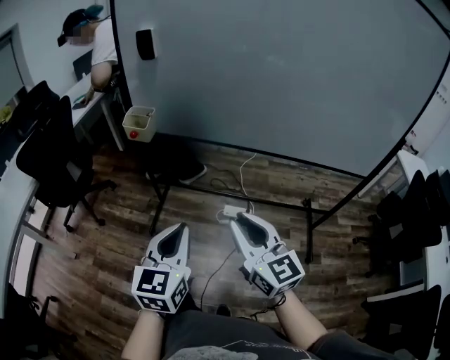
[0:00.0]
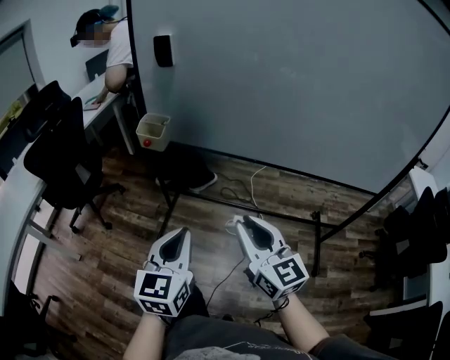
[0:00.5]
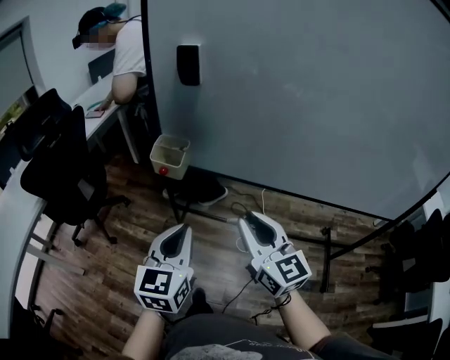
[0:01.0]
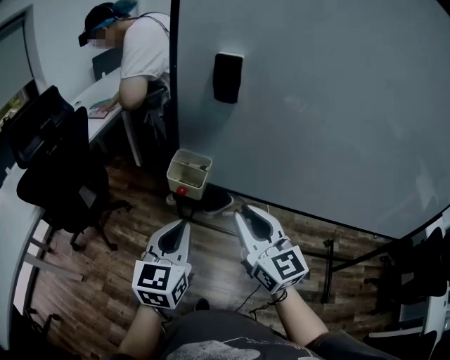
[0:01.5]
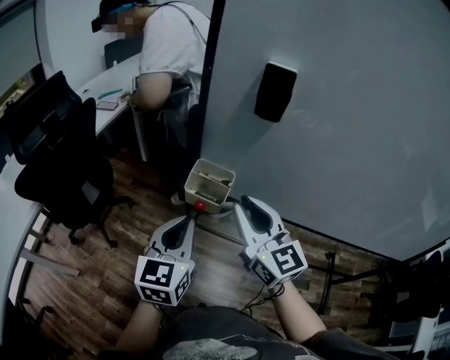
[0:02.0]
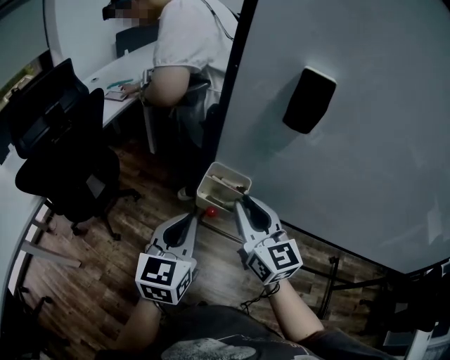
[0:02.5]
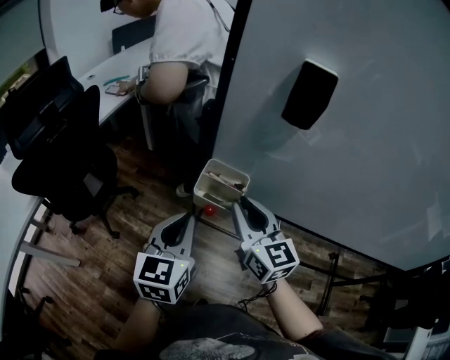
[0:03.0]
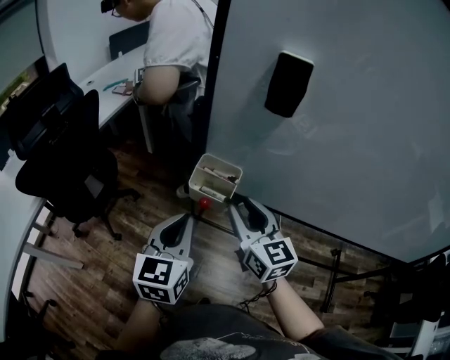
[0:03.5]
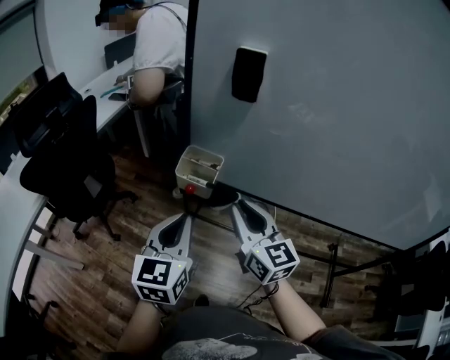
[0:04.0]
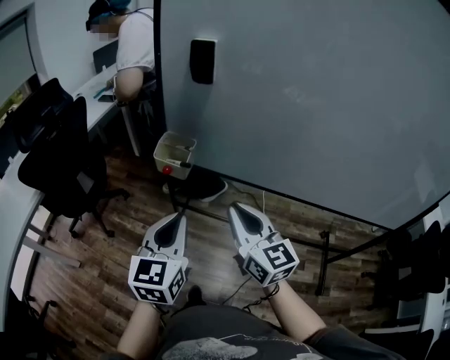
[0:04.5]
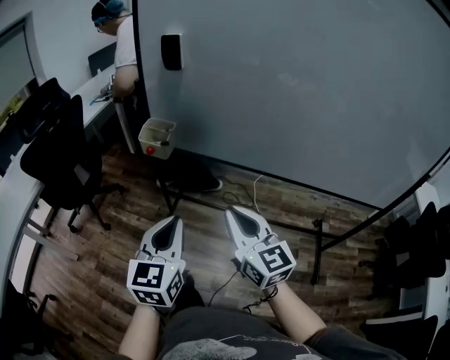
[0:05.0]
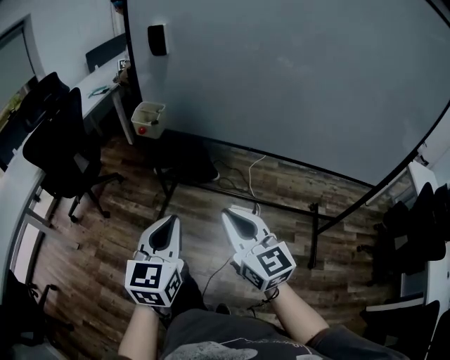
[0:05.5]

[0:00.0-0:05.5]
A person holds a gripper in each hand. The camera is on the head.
0:00.0 to 0:02.0: Both grippers move forward and to the left, approximately 40 cm.
0:02.0 to 0:03.5: The right gripper is displaced downward by some 5 cm.
0:03.5 to 0:05.5: Both grippers move backward and to the right, about 40 cm. The right gripper closes.

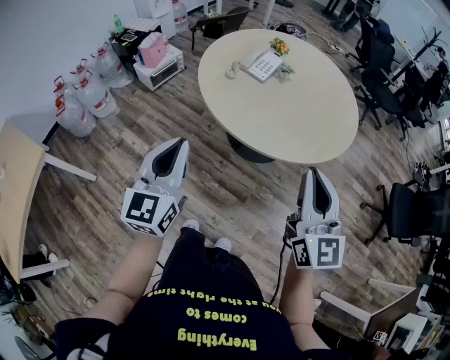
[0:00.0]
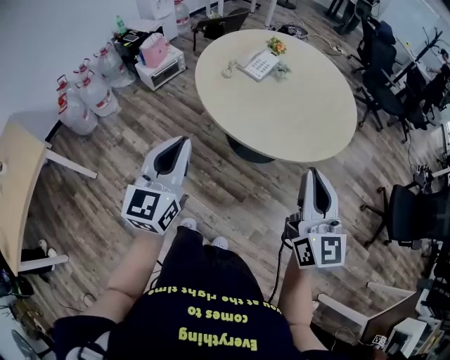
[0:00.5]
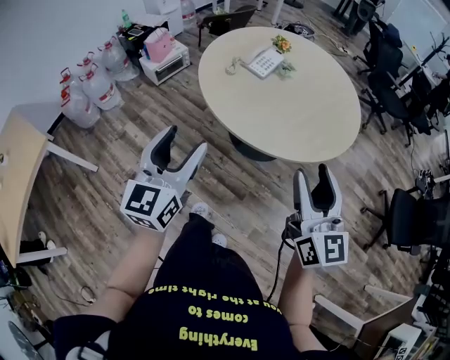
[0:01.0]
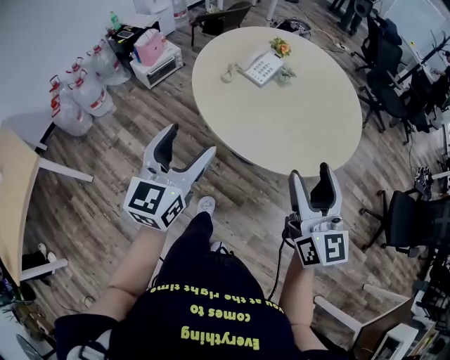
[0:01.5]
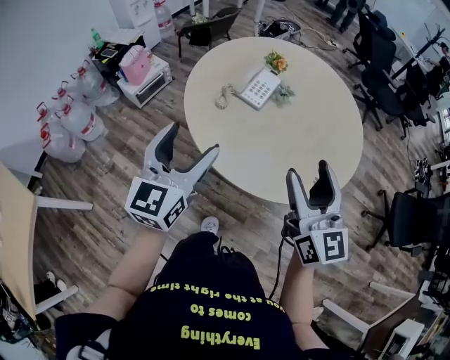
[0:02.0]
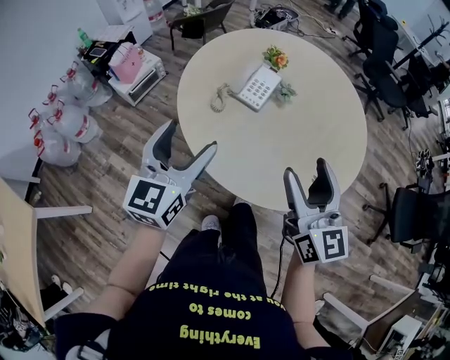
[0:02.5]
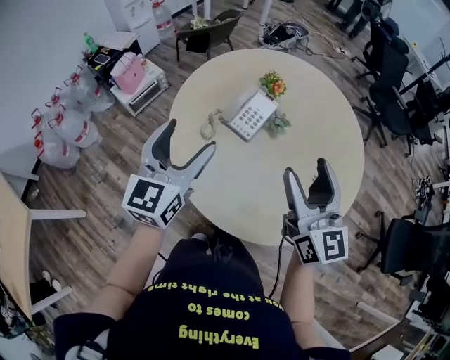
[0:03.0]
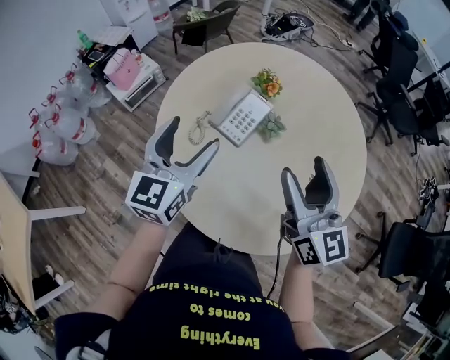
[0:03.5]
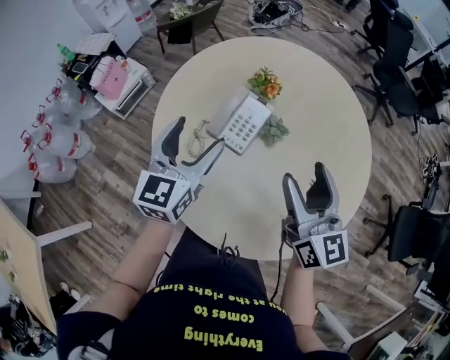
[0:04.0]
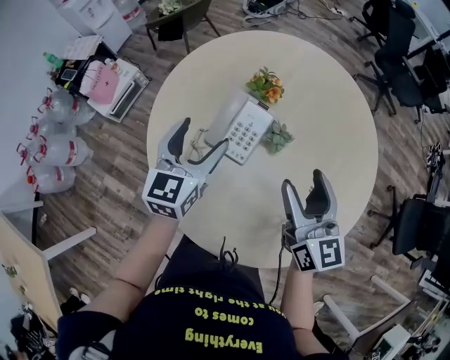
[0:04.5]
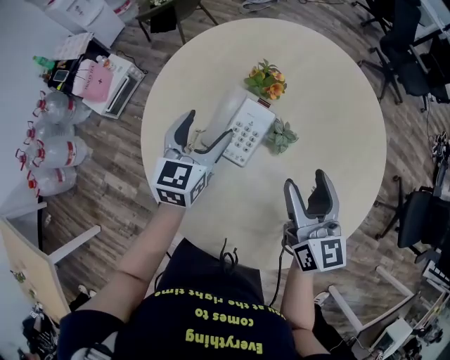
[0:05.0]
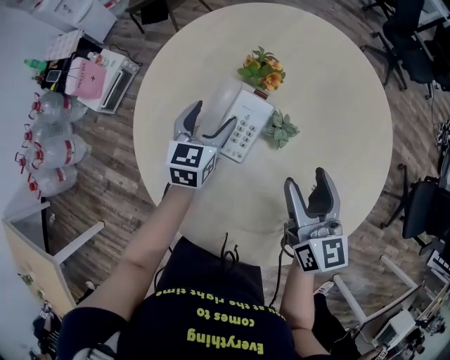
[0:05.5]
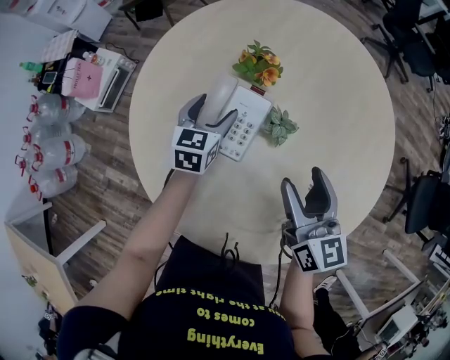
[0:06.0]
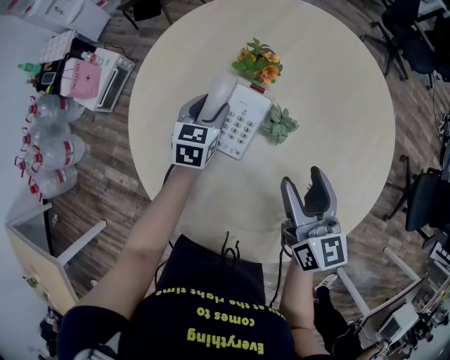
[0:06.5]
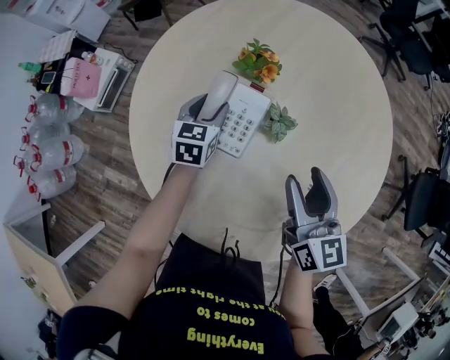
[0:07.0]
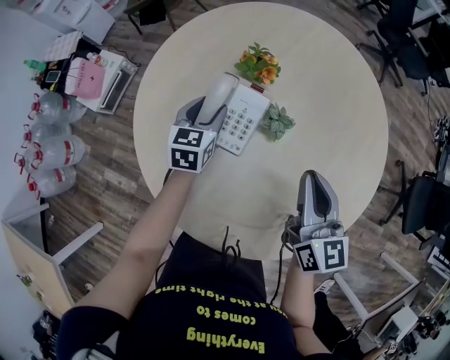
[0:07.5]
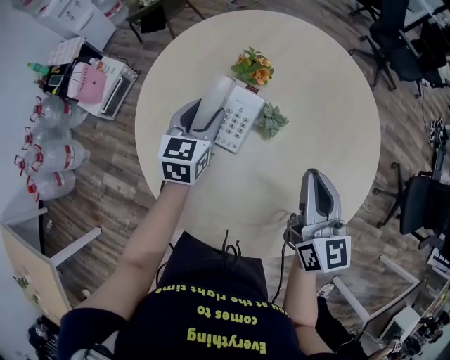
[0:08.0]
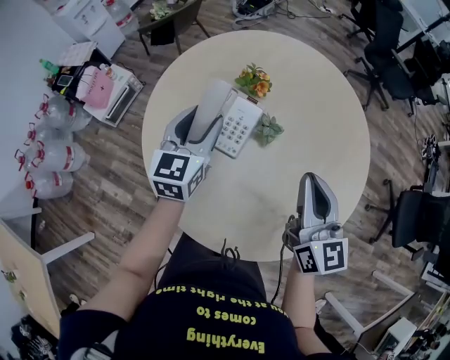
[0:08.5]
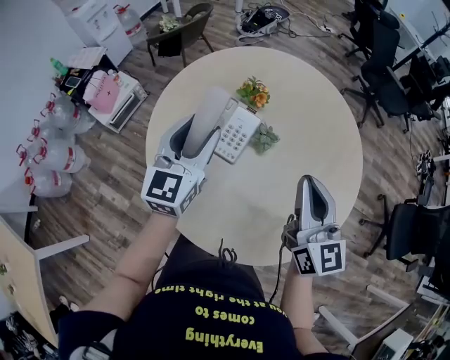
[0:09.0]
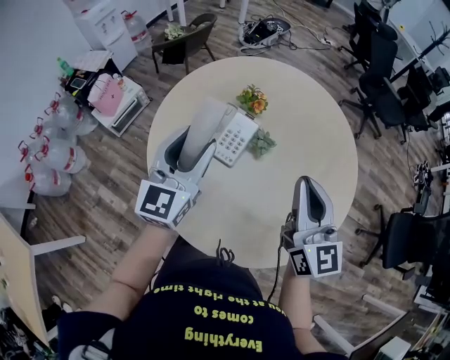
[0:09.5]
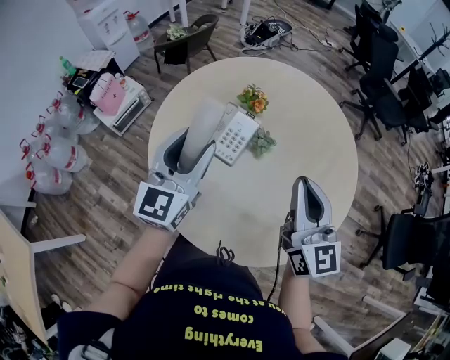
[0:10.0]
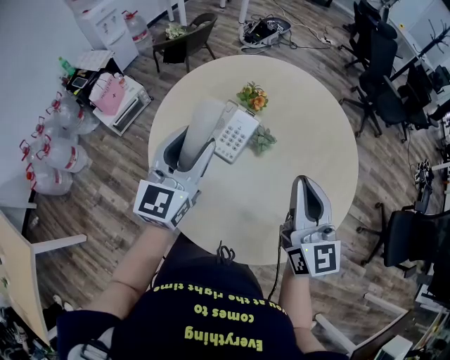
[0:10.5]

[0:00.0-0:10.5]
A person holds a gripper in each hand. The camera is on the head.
0:00.0 to 0:02.0: The grippers both shift forward by roughly 20 cm. The right gripper opens up, while the left gripper opens.
0:02.0 to 0:04.0: The two grippers go roughly 30 cm forward.
0:04.0 to 0:06.5: The right gripper goes about 15 cm downward and forward. The left gripper heads downward and forward, covering some 30 cm, rotates some 30 degrees, and closes.
0:06.5 to 0:08.5: The right gripper moves upward and backward, some 15 cm, and closes. The left gripper is displaced upward and backward by roughly 20 cm, and rotates about 20 degrees.
0:08.5 to 0:10.5: The right gripper moves upward, roughly 5 cm. Meanwhile the left gripper travels backward and upward by some 15 cm.

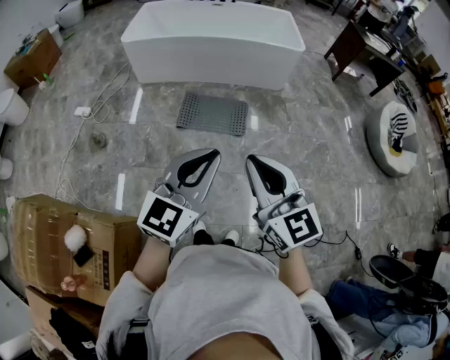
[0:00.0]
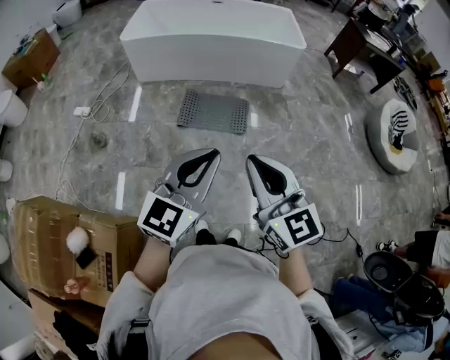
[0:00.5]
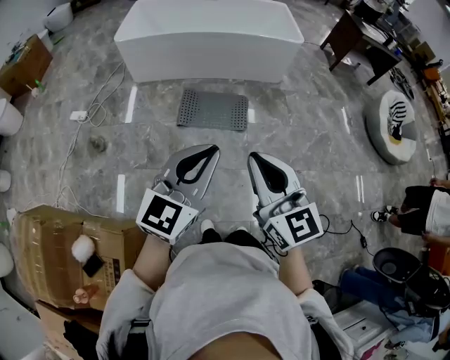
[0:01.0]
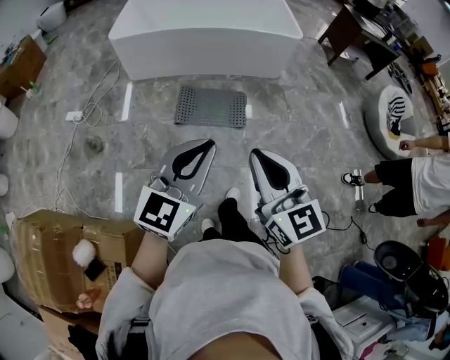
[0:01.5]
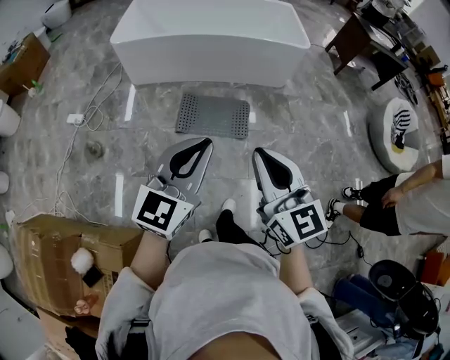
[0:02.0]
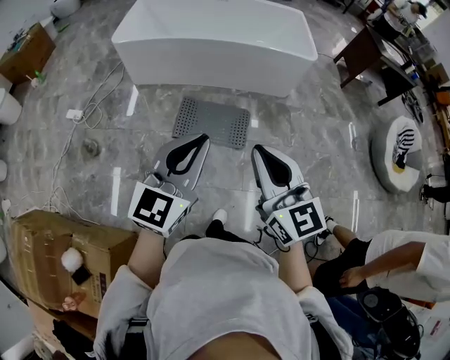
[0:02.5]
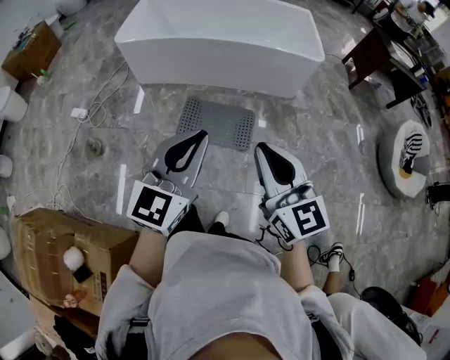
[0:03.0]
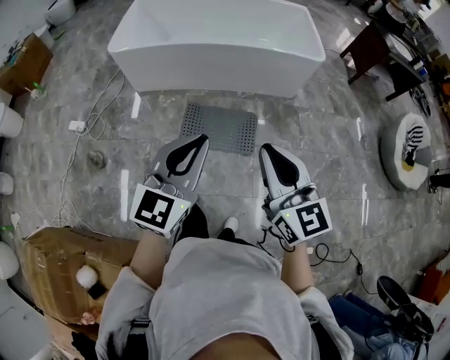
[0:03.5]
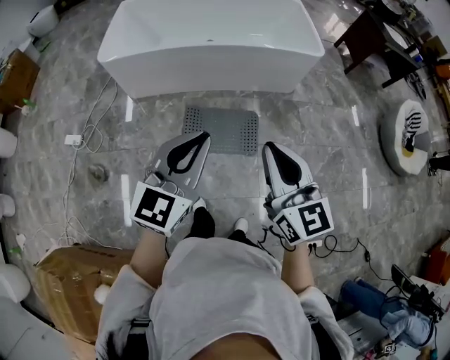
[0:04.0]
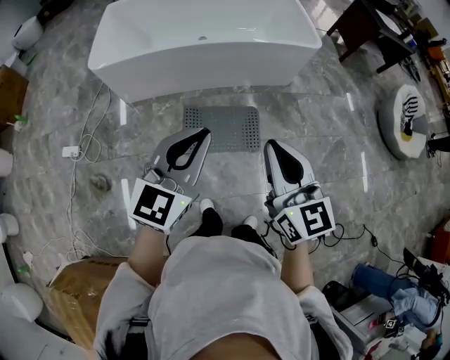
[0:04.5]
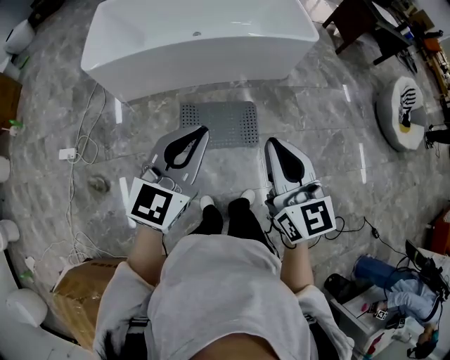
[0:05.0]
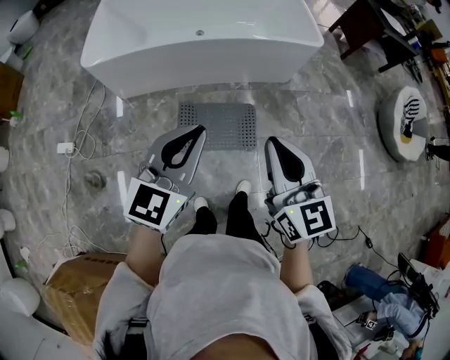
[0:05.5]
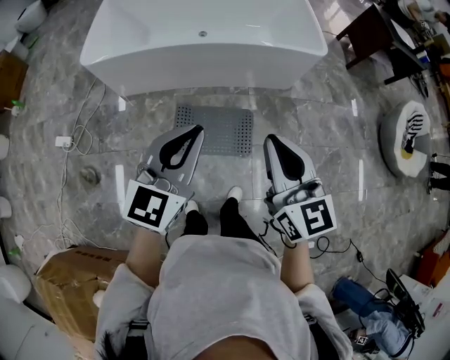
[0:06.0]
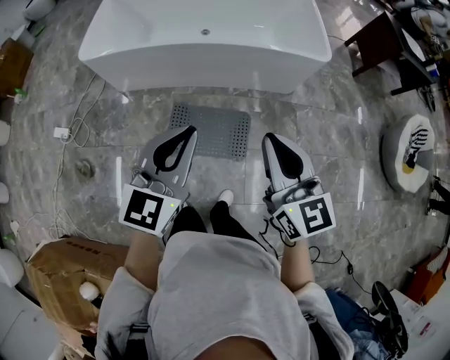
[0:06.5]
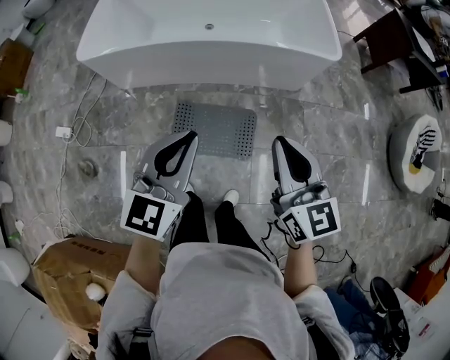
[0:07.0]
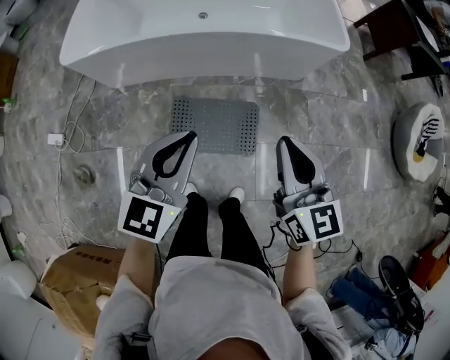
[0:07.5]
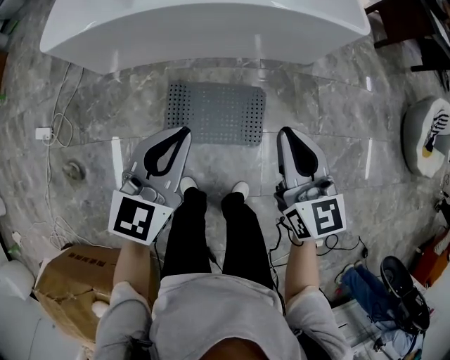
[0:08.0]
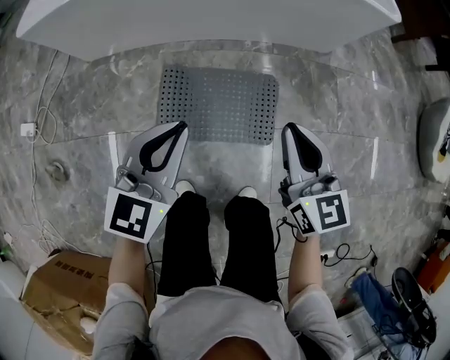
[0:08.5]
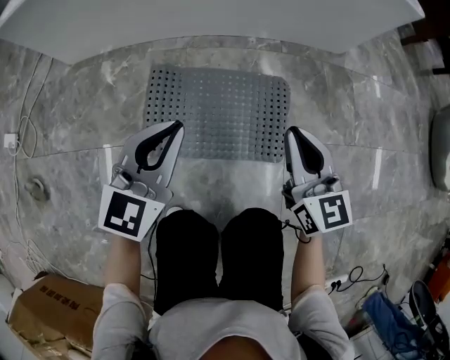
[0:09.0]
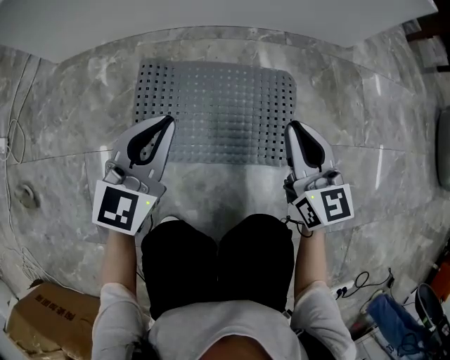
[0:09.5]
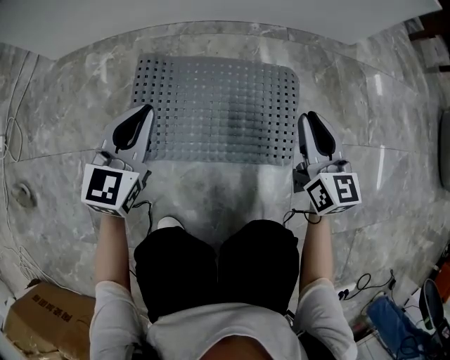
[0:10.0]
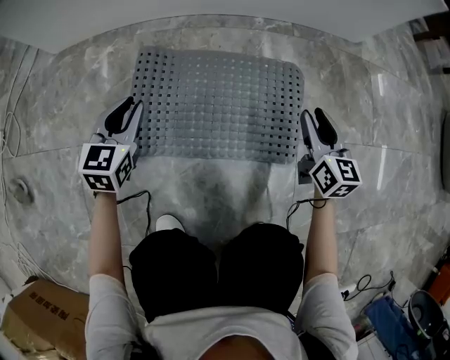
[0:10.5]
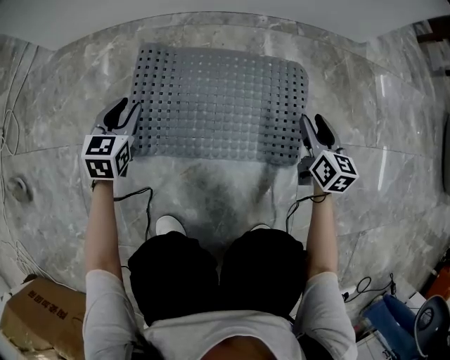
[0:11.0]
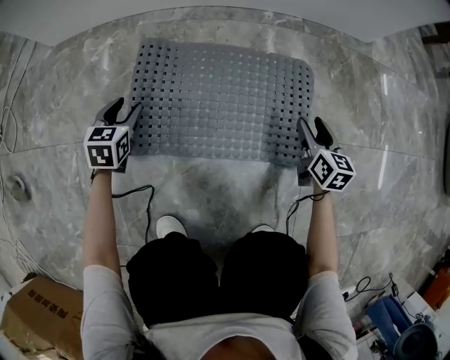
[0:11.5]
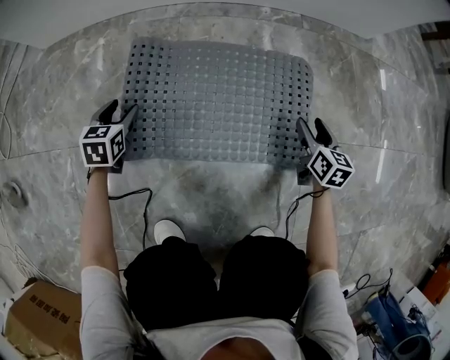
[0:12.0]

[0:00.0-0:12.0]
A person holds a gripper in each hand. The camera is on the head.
0:00.0 to 0:02.0: The right gripper shifts about 15 cm forward, while the left gripper shifts roughly 20 cm forward and to the left.
0:02.0 to 0:04.0: Both grippers travel together forward, about 30 cm.
0:04.0 to 0:06.0: Both grippers move forward, roughly 15 cm.
0:06.0 to 0:08.0: Both grippers travel together downward and forward, some 30 cm.
0:08.0 to 0:10.0: The grippers both shift downward by about 60 cm.
0:10.0 to 0:12.0: The left gripper heads downward and to the left, covering approximately 25 cm, turns by roughly 30 degrees, and opens. Meanwhile the right gripper travels downward by about 20 cm, rotates roughly 30 degrees, and opens its fingers.
